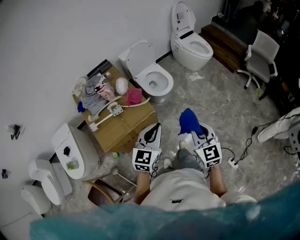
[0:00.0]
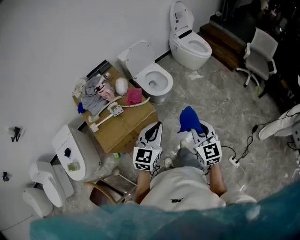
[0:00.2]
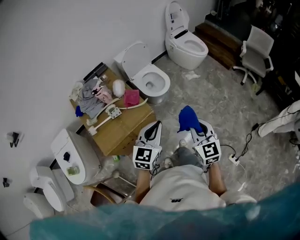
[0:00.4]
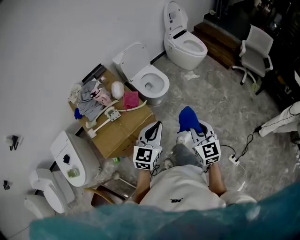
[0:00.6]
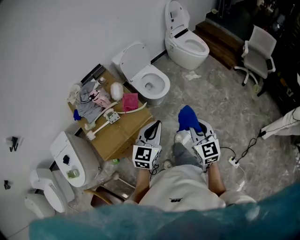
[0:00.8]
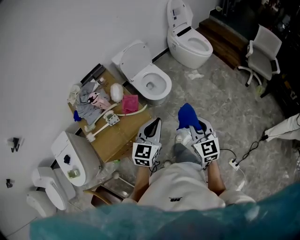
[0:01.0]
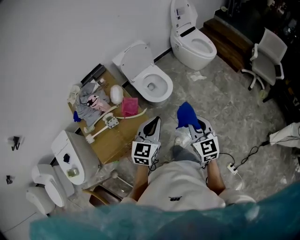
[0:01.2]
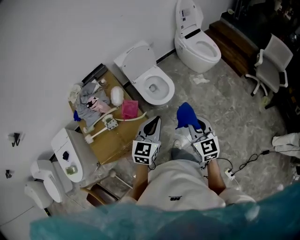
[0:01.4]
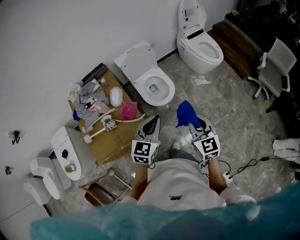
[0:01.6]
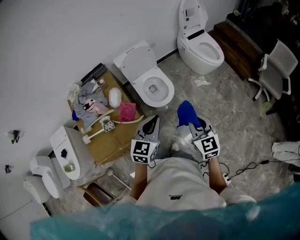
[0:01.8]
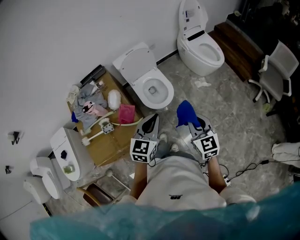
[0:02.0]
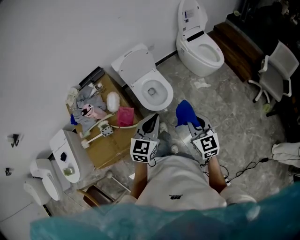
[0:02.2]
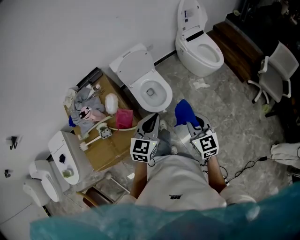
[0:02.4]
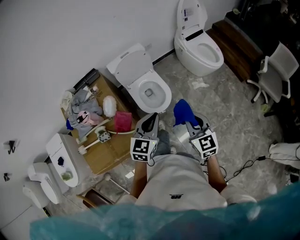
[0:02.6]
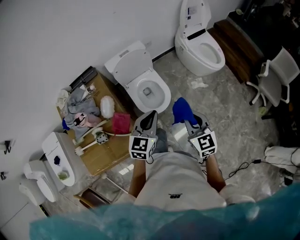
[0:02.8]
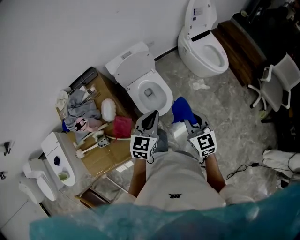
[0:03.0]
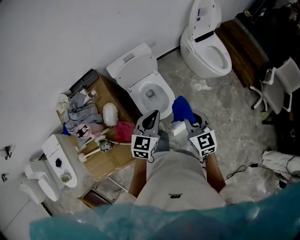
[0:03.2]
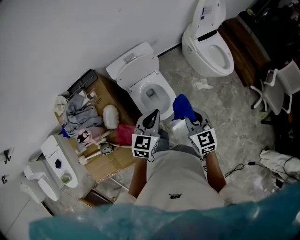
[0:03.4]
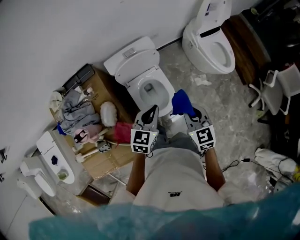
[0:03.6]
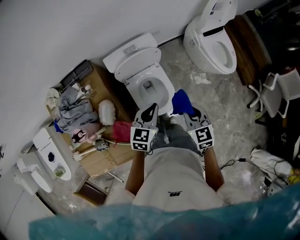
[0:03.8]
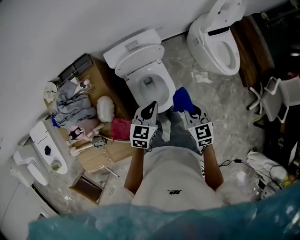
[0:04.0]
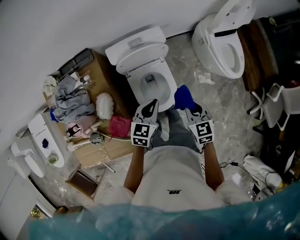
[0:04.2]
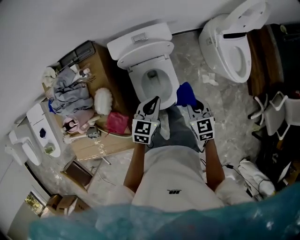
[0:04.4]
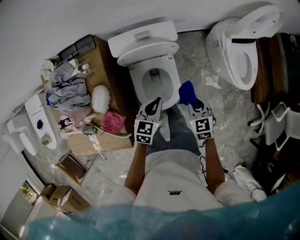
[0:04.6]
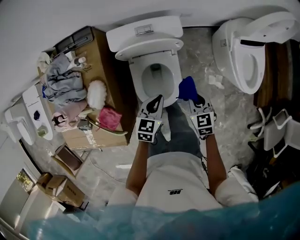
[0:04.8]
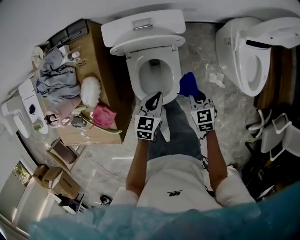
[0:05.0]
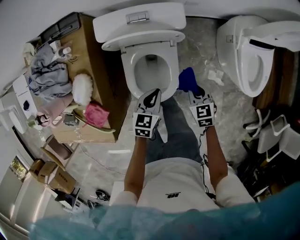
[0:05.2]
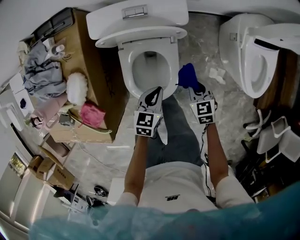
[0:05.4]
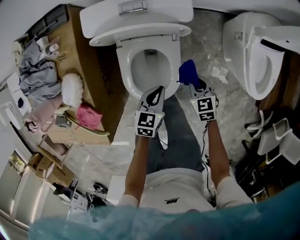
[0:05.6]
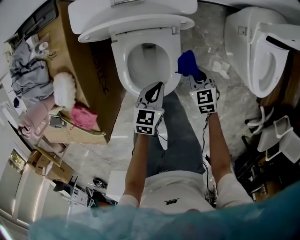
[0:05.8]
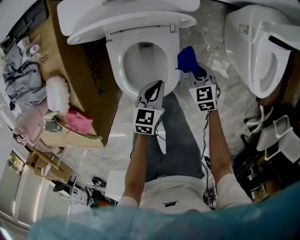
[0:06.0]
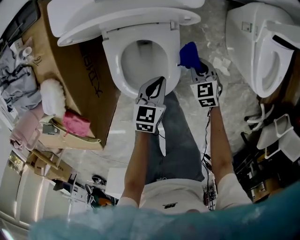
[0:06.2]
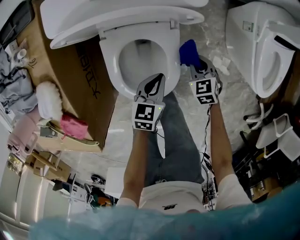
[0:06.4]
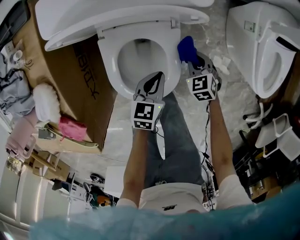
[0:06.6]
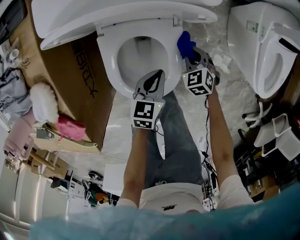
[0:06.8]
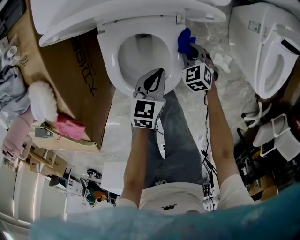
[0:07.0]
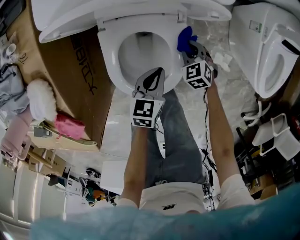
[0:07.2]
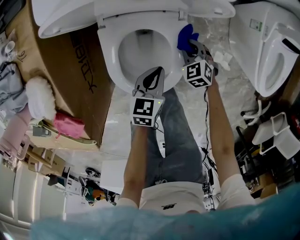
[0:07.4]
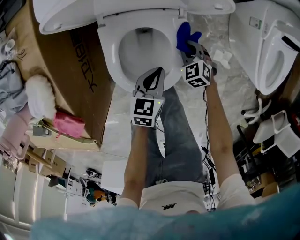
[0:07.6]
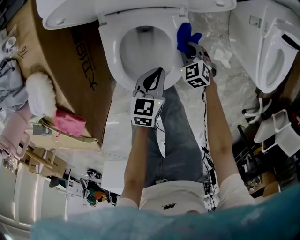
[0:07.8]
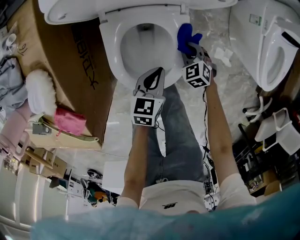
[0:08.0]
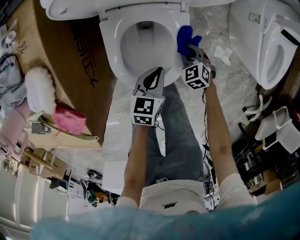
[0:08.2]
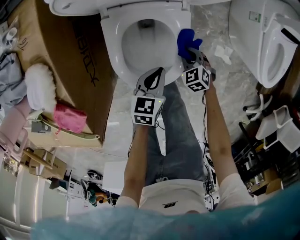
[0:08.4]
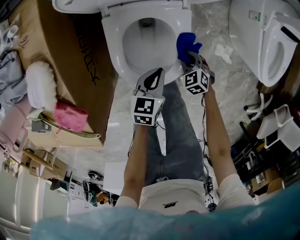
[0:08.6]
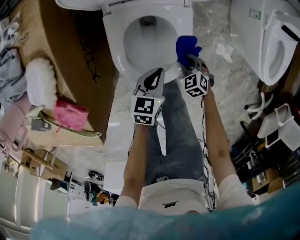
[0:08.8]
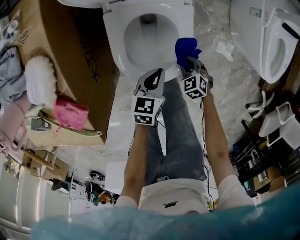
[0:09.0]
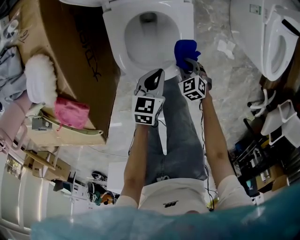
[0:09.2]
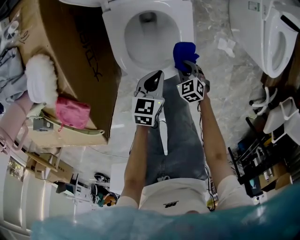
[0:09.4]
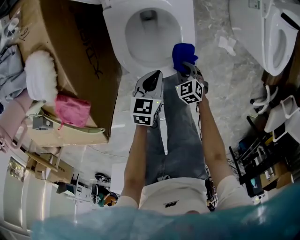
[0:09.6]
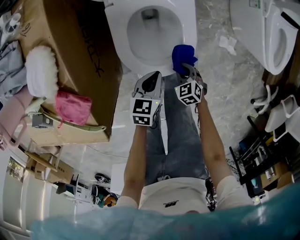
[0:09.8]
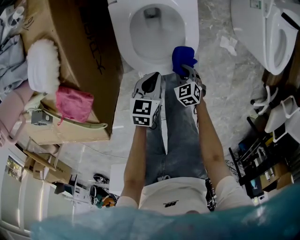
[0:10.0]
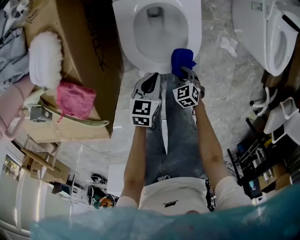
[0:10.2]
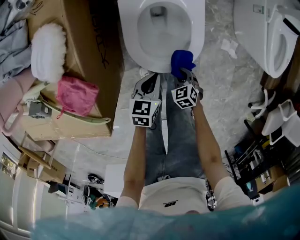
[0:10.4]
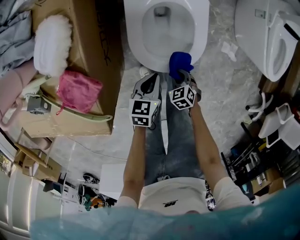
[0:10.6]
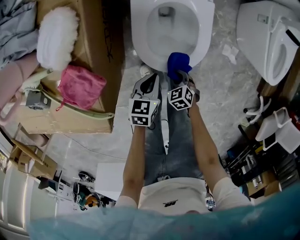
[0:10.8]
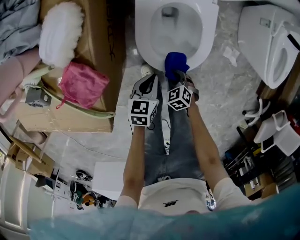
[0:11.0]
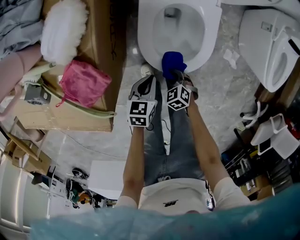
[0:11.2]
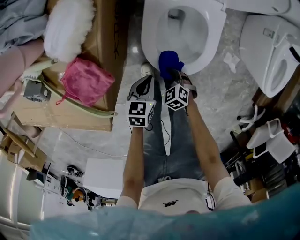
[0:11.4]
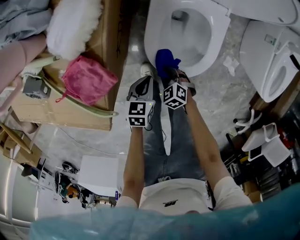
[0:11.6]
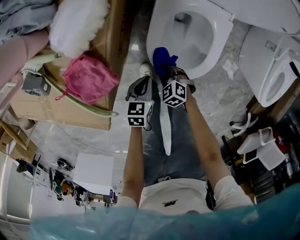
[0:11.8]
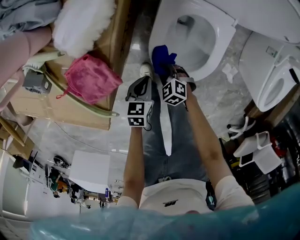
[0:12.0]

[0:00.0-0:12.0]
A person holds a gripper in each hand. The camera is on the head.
0.0 to 1.6 s: Both grippers travel together forward, some 25 cm.
1.6 to 3.0 s: The two grippers go approximately 25 cm forward.
3.0 to 4.4 s: Both grippers travel together forward and downward, some 30 cm. The right gripper turns by roughly 20 degrees, while the left gripper rotates approximately 20 degrees.
4.4 to 6.0 s: The grippers both shift downward by some 35 cm. The left gripper rotates about 20 degrees, while the right gripper swivels about 20 degrees.
6.0 to 7.6 s: The right gripper moves downward, about 15 cm, and turns by some 20 degrees. The left gripper moves downward, some 5 cm.
7.6 to 9.0 s: The right gripper is displaced backward by approximately 15 cm. The left gripper travels backward by about 10 cm.
9.0 to 10.4 s: Both grippers travel together backward and to the left, approximately 15 cm.
10.4 to 12.0 s: The right gripper moves about 15 cm, and rotates approximately 40 degrees. Meanwhile the left gripper changes place by roughly 10 cm, and turns by some 20 degrees.

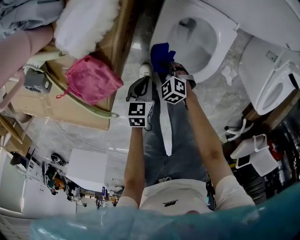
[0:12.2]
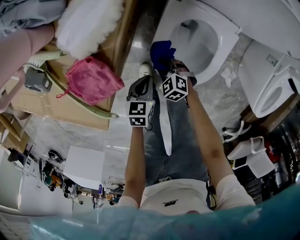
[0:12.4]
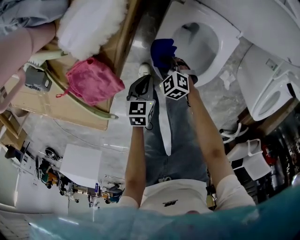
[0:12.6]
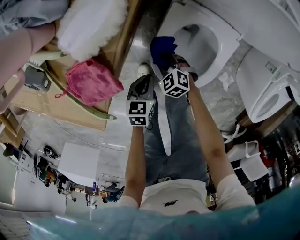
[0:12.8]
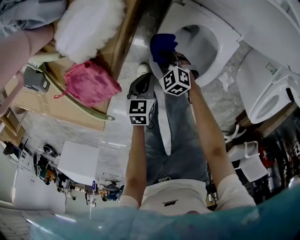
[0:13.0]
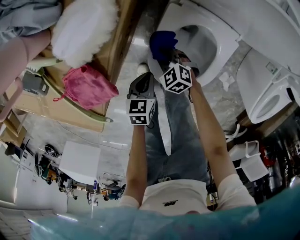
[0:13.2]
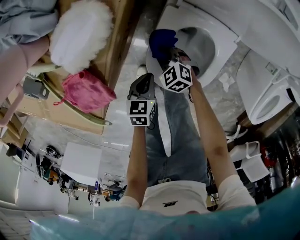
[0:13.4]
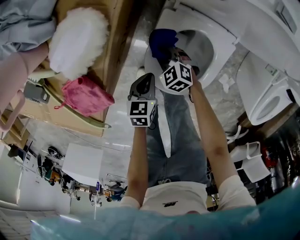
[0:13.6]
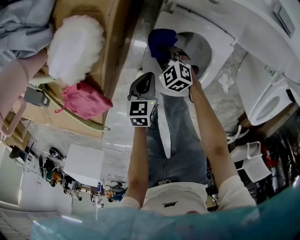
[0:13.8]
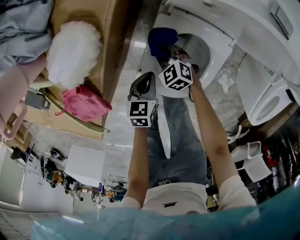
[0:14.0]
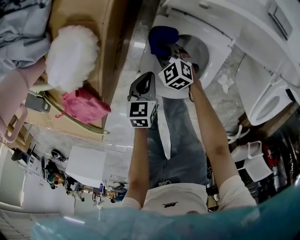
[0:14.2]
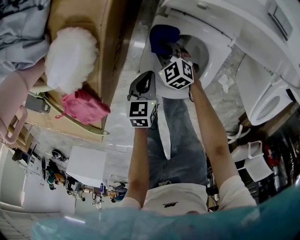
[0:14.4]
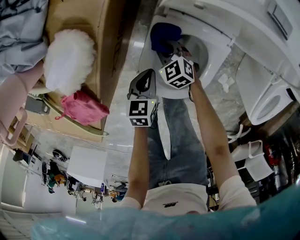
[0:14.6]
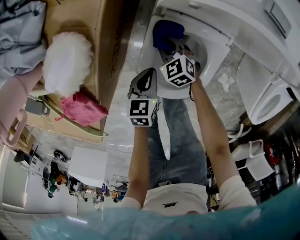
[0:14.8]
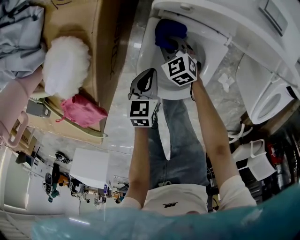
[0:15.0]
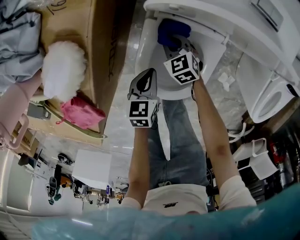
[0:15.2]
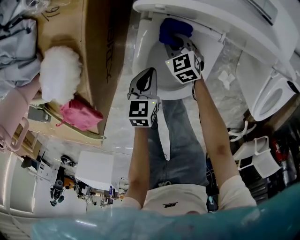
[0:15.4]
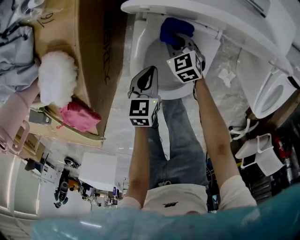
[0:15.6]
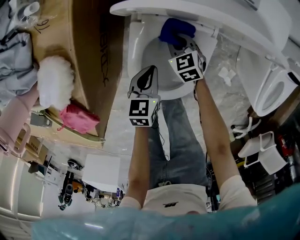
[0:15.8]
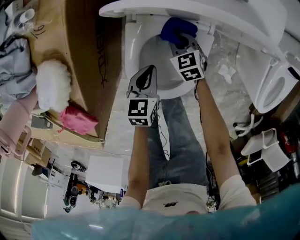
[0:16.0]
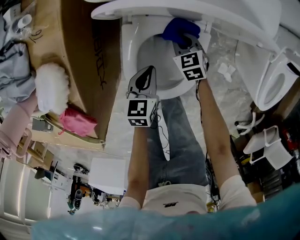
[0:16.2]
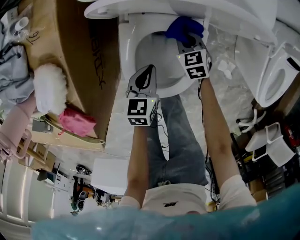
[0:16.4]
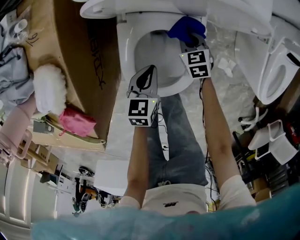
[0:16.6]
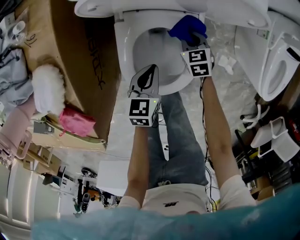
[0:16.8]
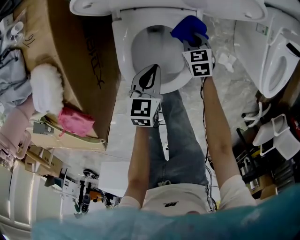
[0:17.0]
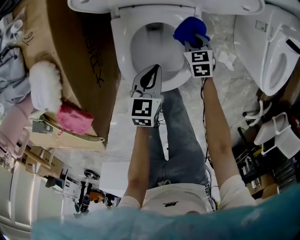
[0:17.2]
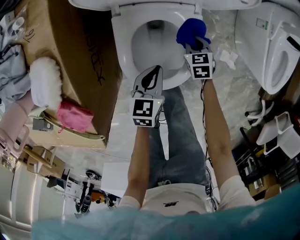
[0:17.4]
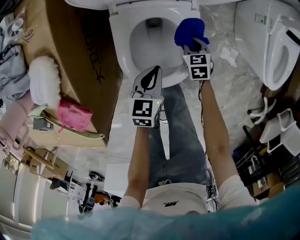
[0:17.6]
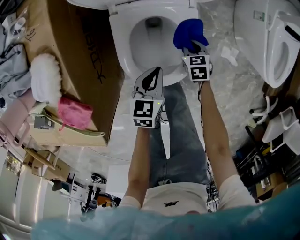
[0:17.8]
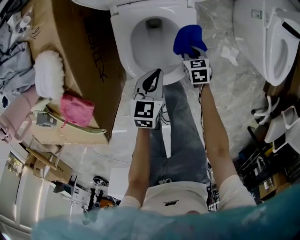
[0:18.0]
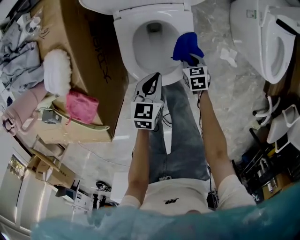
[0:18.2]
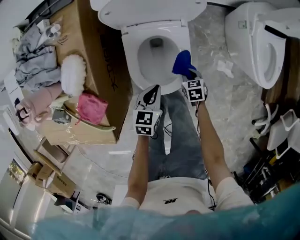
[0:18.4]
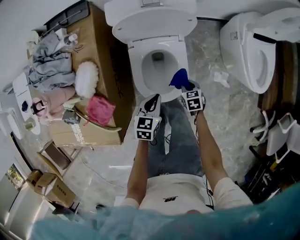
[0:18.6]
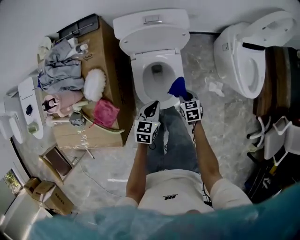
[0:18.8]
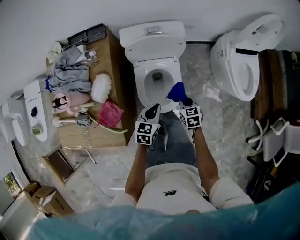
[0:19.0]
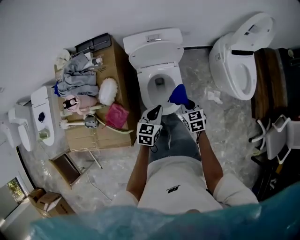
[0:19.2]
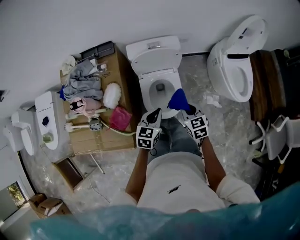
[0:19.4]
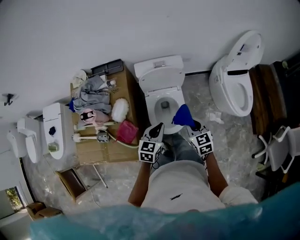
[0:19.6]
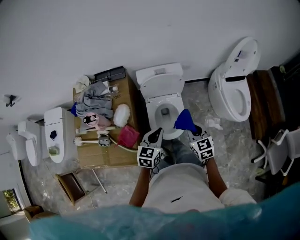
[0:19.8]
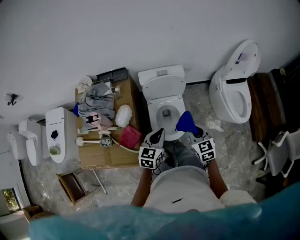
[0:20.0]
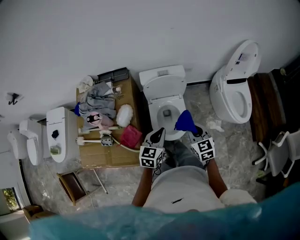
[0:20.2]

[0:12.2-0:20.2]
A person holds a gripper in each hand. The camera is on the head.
12.2 to 13.8 s: The two grippers go roughly 10 cm forward and to the right.
13.8 to 15.4 s: The right gripper is displaced to the right and forward by about 15 cm, and rotates some 20 degrees. The left gripper travels to the right and forward by some 10 cm.
15.4 to 17.0 s: The left gripper is displaced to the right by approximately 10 cm, while the right gripper is displaced to the right by about 20 cm, and changes its angle by about 30 degrees.
17.0 to 18.6 s: The right gripper goes about 20 cm backward and upward; the left gripper shifts roughly 20 cm upward and backward.
18.6 to 20.2 s: Both grippers move upward, approximately 40 cm. The right gripper points its fingers roughly 30 degrees further upward.

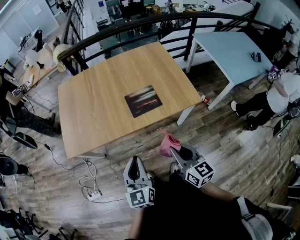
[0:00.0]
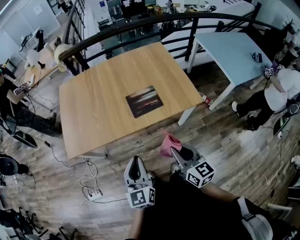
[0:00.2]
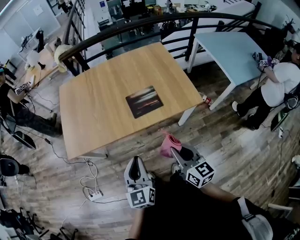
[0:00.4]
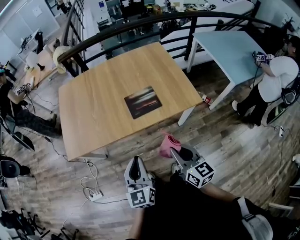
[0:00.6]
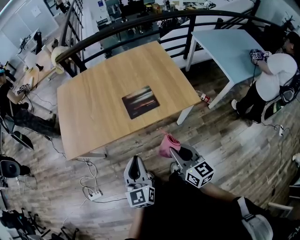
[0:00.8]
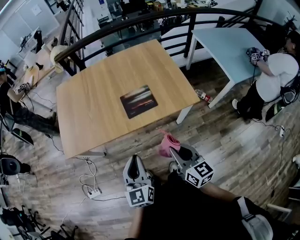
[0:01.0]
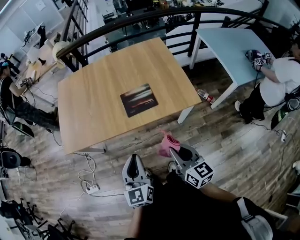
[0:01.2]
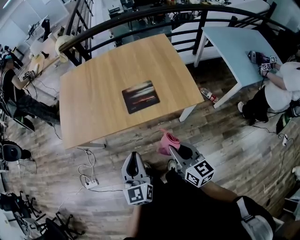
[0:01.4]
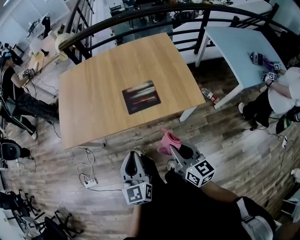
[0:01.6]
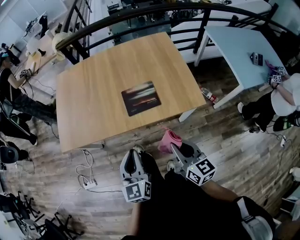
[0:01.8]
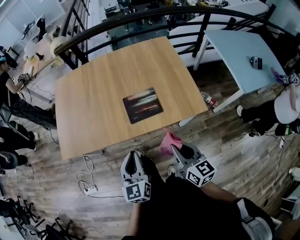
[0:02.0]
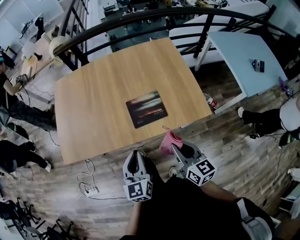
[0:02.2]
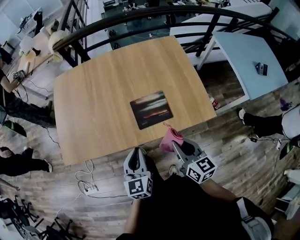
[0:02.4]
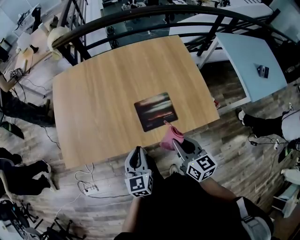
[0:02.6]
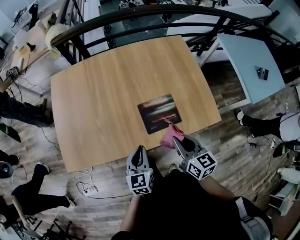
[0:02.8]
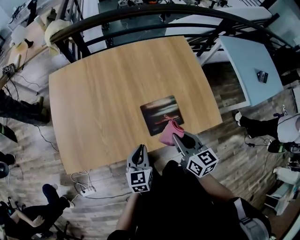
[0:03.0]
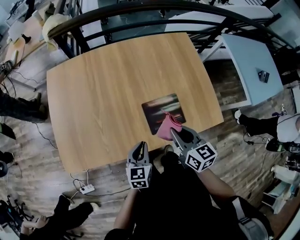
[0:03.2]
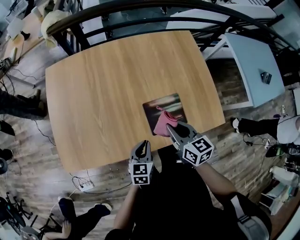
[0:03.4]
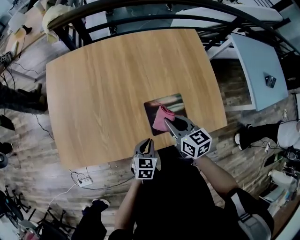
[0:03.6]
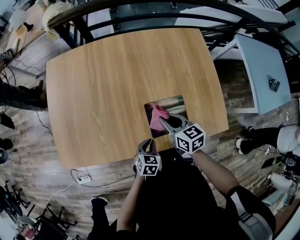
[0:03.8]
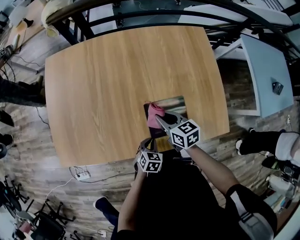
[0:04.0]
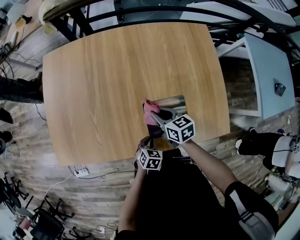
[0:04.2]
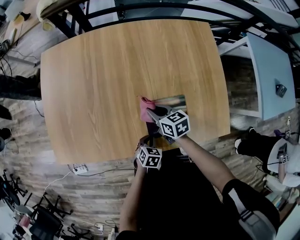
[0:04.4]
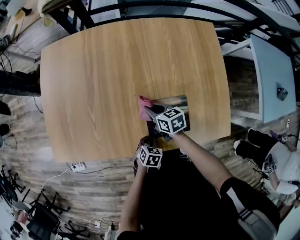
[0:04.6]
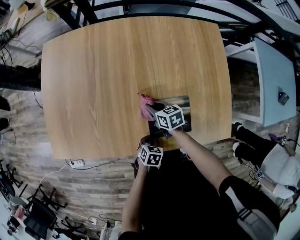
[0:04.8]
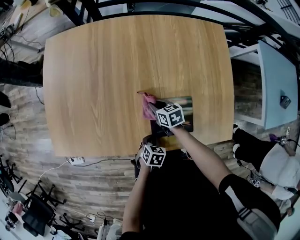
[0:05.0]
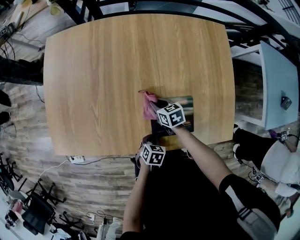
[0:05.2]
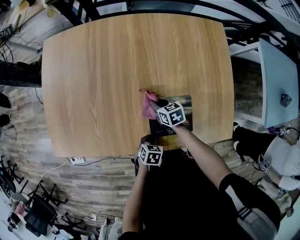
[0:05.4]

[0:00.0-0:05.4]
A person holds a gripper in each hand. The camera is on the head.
0.0 to 1.4 s: Both grippers move to the right, roughly 5 cm.
1.4 to 2.8 s: The left gripper shifts approximately 25 cm forward and downward, and swivels roughly 20 degrees. Meanwhile the right gripper moves forward, some 25 cm.
2.8 to 4.0 s: The left gripper is displaced downward by about 20 cm, and points its fingers approximately 30 degrees further downward, while the right gripper moves forward and downward, some 20 cm, and swivels approximately 20 degrees.
4.0 to 5.4 s: The right gripper travels downward by approximately 15 cm. Meanwhile the left gripper is displaced downward by about 5 cm.
